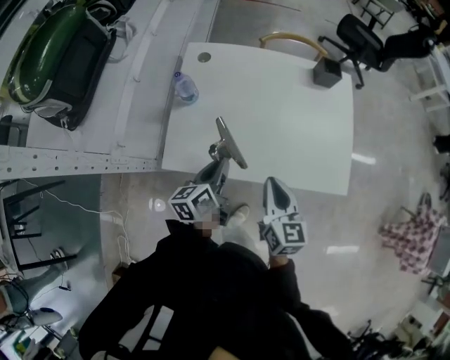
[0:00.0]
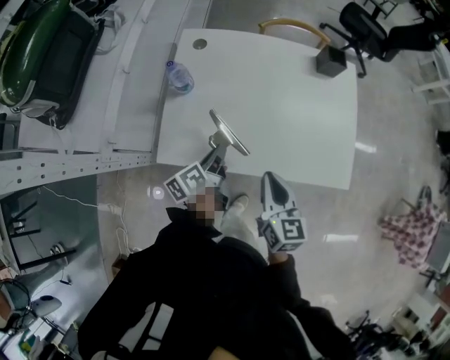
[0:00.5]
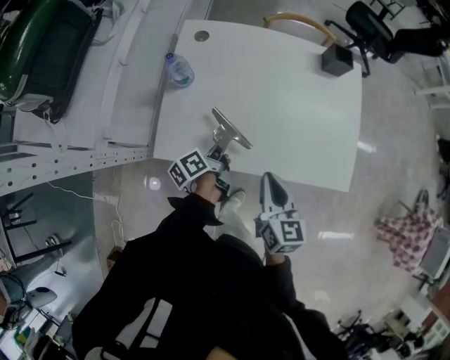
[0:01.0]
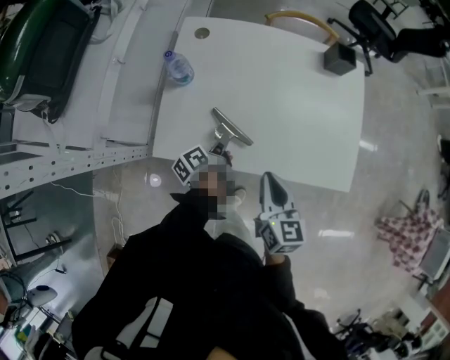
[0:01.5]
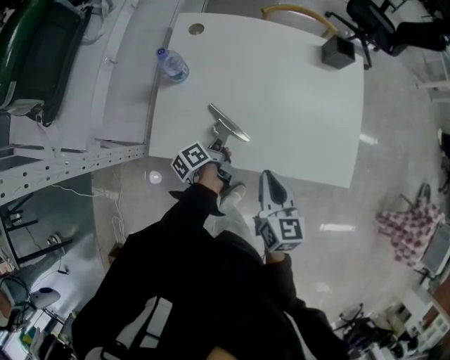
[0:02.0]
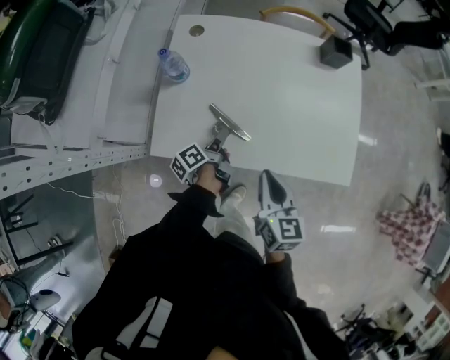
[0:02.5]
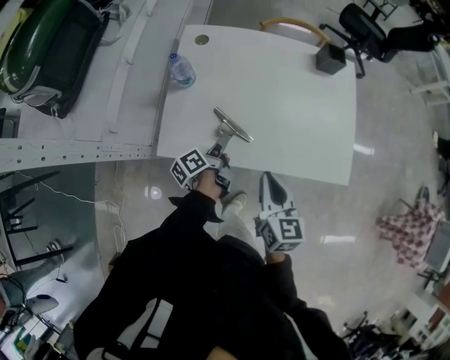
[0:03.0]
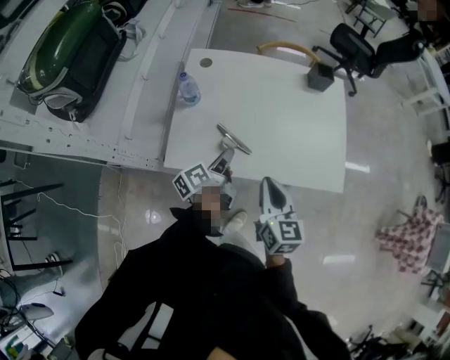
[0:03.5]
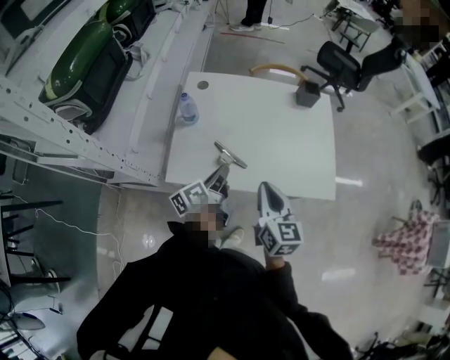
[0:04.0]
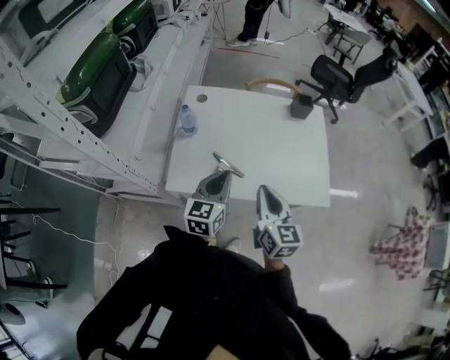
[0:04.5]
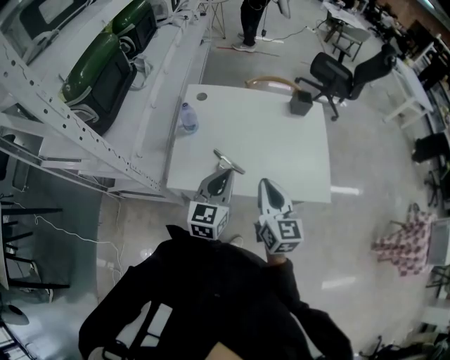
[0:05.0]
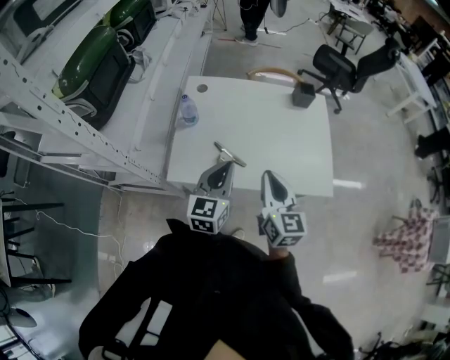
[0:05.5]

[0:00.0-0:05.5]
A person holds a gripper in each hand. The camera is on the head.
0:00.0 to 0:02.0: The left gripper heads downward, covering some 15 cm, and turns by about 40 degrees.
0:02.0 to 0:03.5: The right gripper is displaced upward by some 5 cm. The left gripper moves upward, roughly 15 cm, and opens up.
0:03.5 to 0:05.5: The right gripper goes some 10 cm upward; the left gripper shifts about 15 cm upward, rolls clockwise, seen from behind, by about 70 degrees, and closes its fingers.

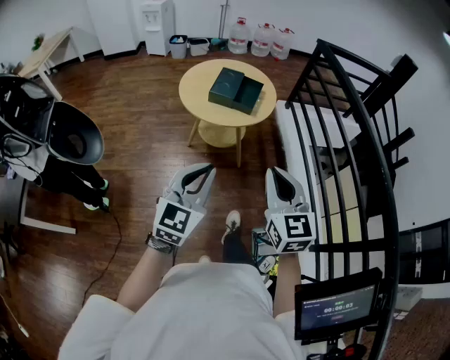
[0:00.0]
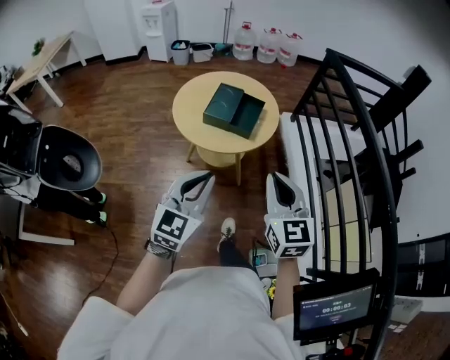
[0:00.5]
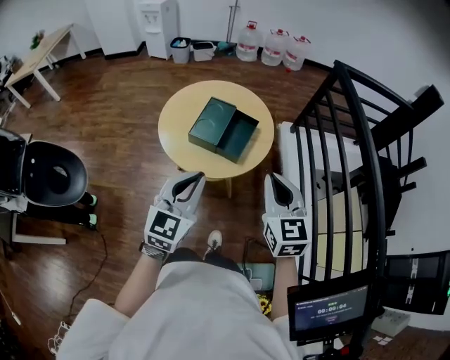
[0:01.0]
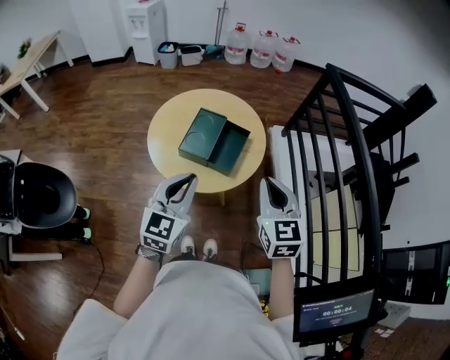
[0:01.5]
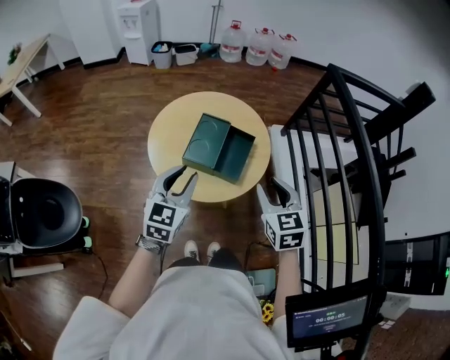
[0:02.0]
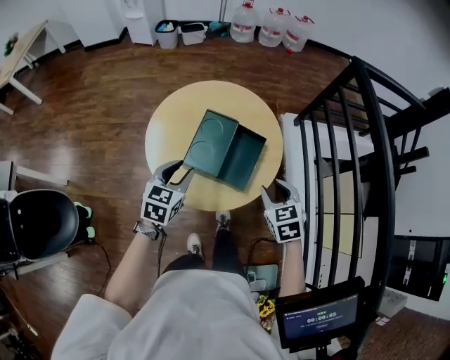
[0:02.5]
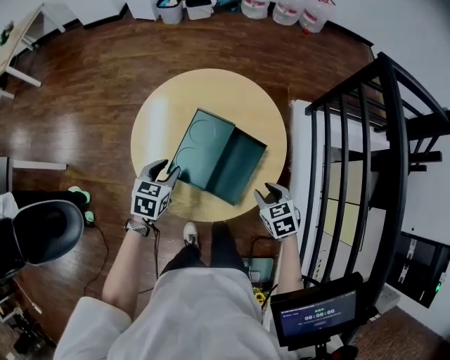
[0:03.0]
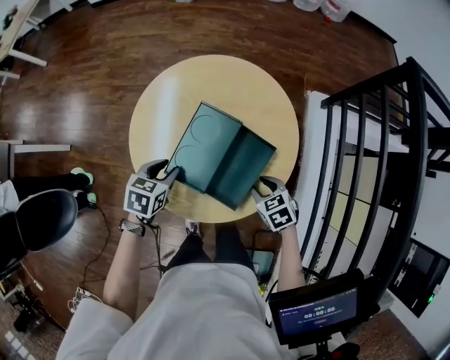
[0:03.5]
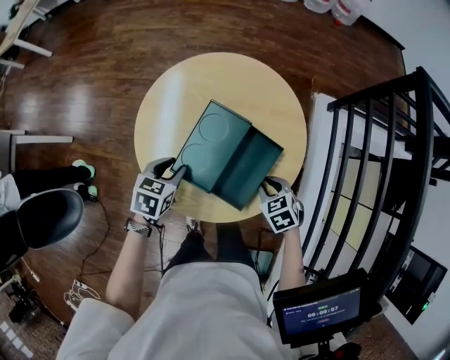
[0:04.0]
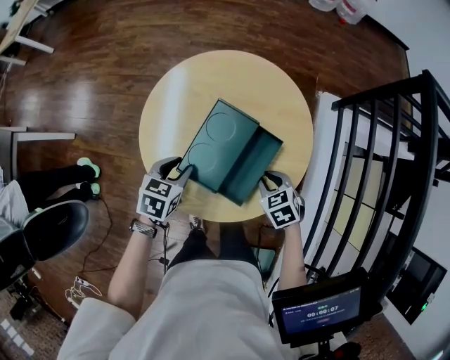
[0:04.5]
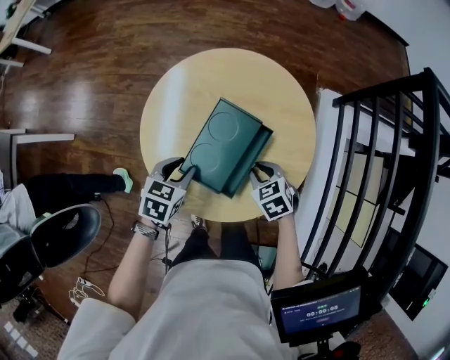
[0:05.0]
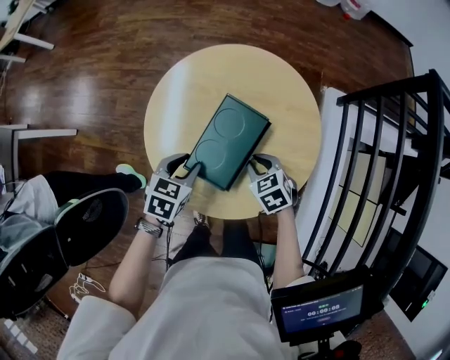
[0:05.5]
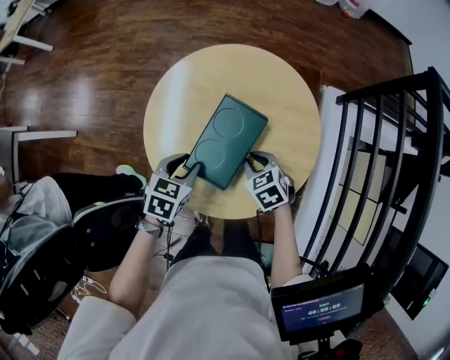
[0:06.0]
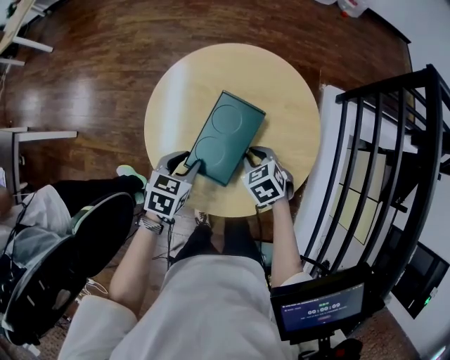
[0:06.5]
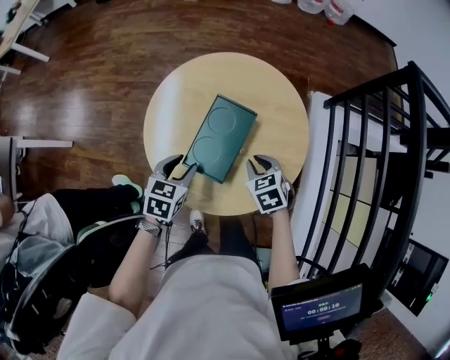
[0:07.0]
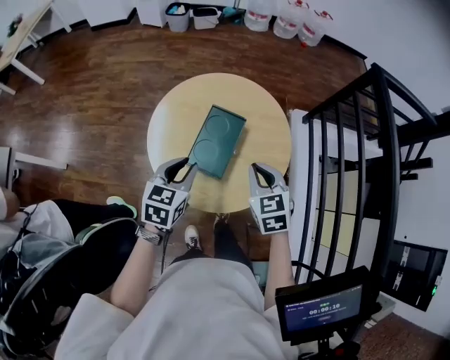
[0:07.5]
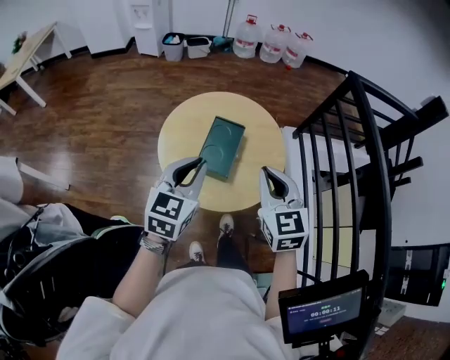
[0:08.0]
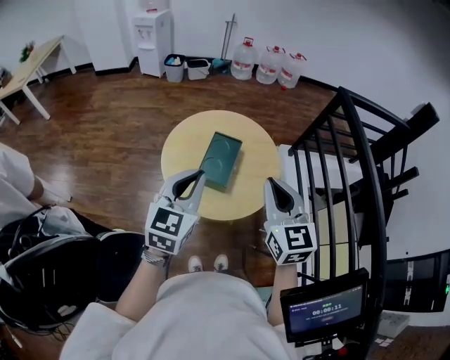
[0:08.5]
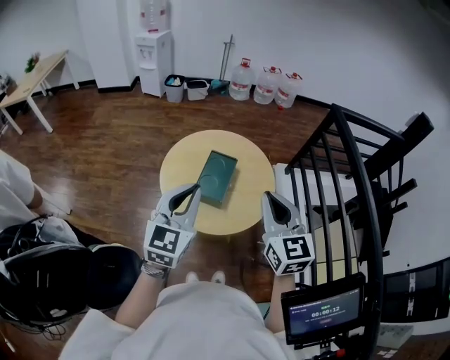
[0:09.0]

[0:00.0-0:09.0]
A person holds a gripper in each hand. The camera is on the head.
0:00.0 to 0:02.0: Both grippers travel together forward, roughly 35 cm. The left gripper opens, while the right gripper opens.
0:02.0 to 0:04.5: Both grippers travel together downward and forward, about 25 cm. The left gripper points its fingers some 40 degrees further downward; the right gripper points its fingers roughly 30 degrees further downward.
0:04.5 to 0:07.0: The right gripper ends up some 5 cm from where it was.
0:07.0 to 0:09.0: The grippers both shift upward by roughly 35 cm. The left gripper angles its fingers upward, by roughly 40 degrees, and closes up; the right gripper tips its fingers upward by about 50 degrees.

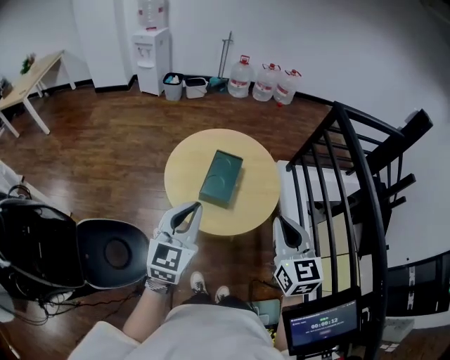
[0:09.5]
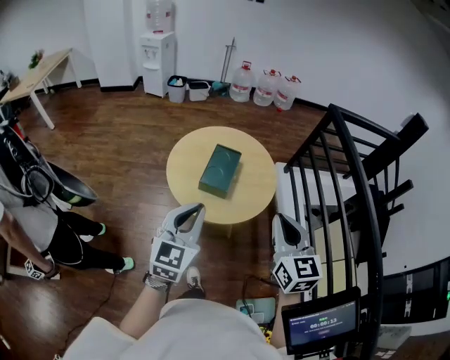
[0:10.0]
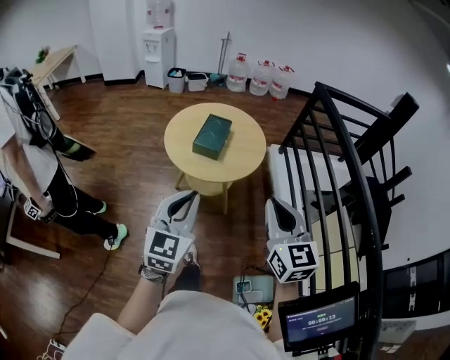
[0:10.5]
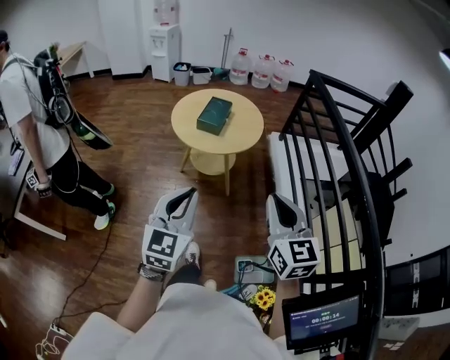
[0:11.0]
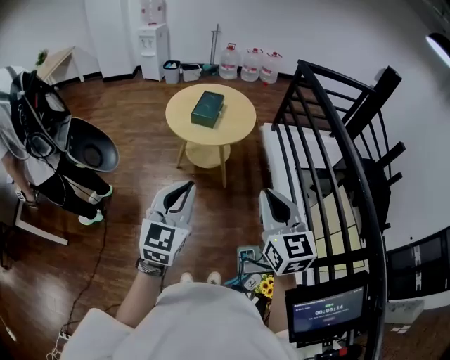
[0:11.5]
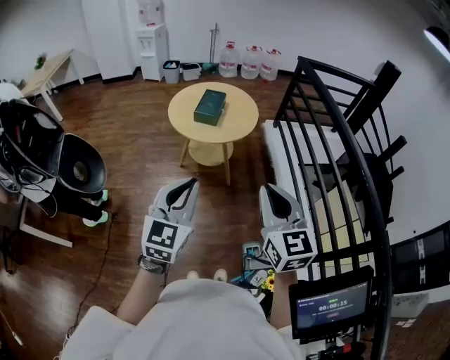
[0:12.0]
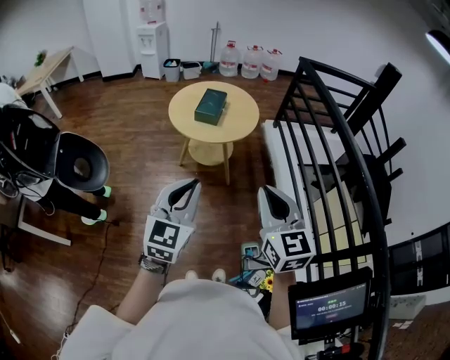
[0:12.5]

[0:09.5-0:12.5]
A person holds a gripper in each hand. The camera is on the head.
0:09.5 to 0:11.0: Both grippers move backward, some 30 cm.
0:11.0 to 0:12.5: The right gripper changes place by roughly 5 cm.

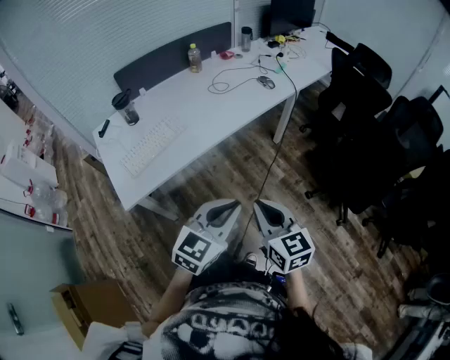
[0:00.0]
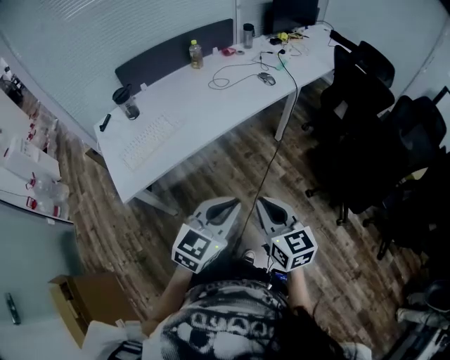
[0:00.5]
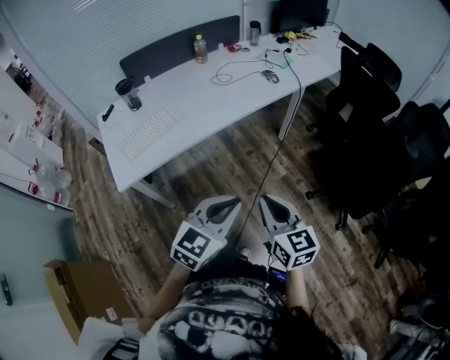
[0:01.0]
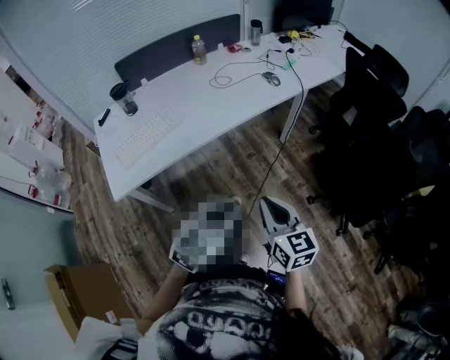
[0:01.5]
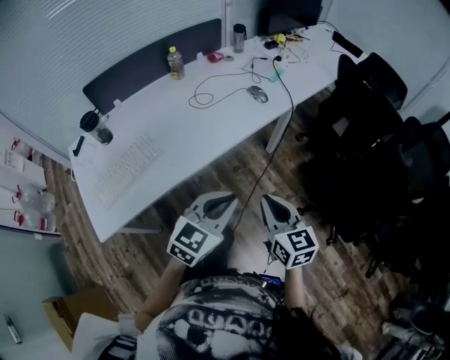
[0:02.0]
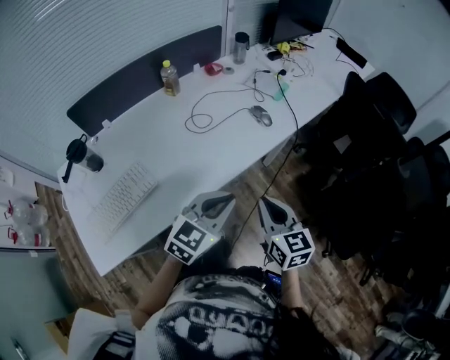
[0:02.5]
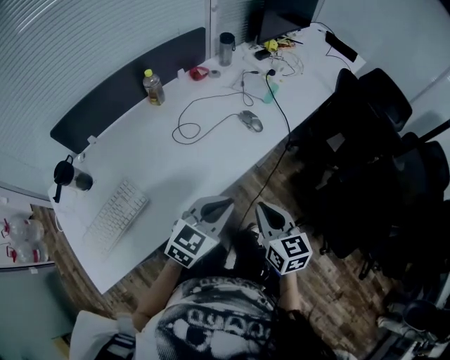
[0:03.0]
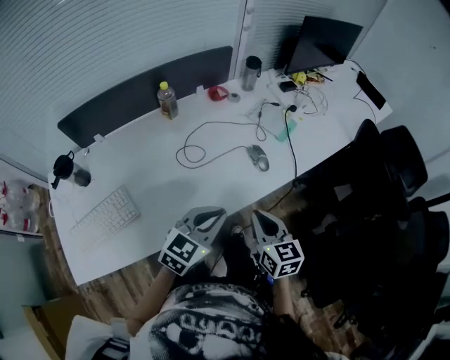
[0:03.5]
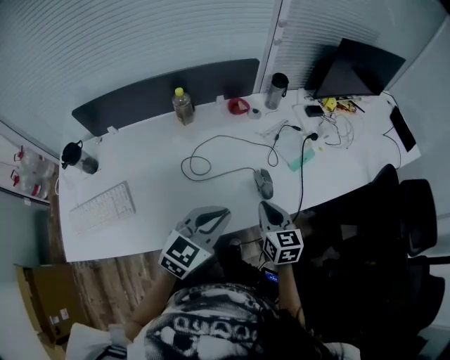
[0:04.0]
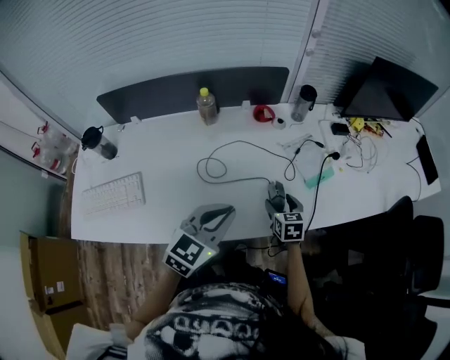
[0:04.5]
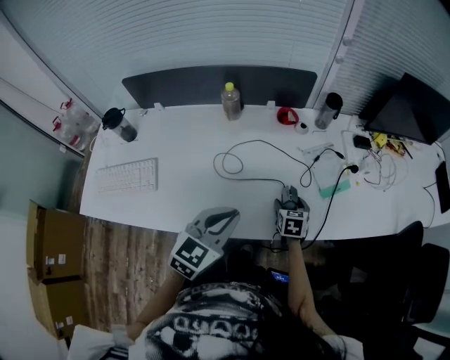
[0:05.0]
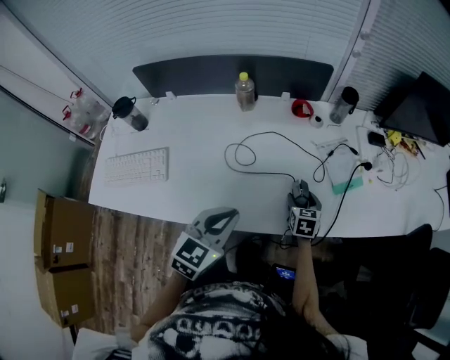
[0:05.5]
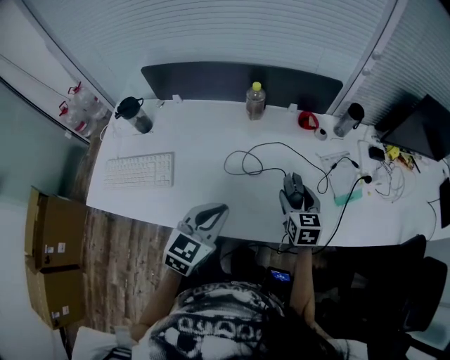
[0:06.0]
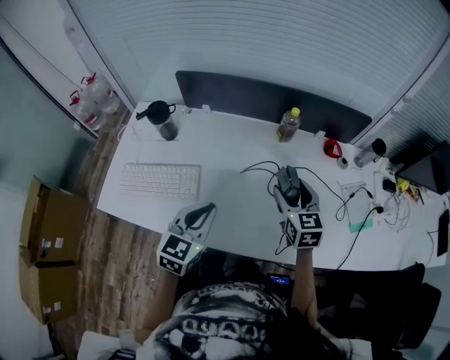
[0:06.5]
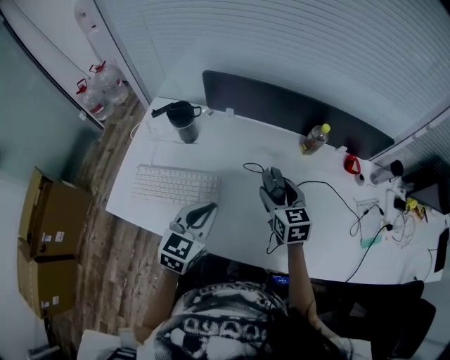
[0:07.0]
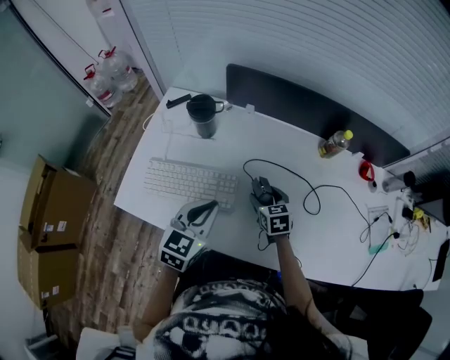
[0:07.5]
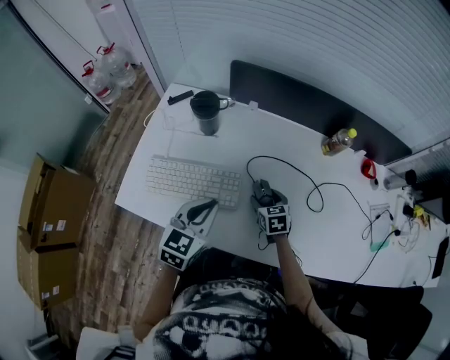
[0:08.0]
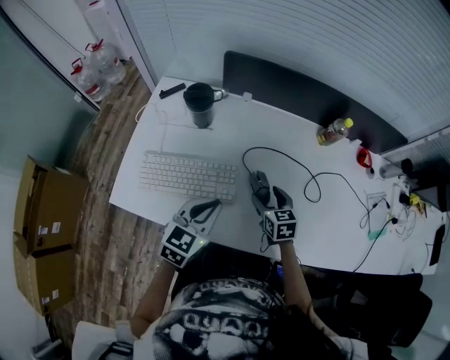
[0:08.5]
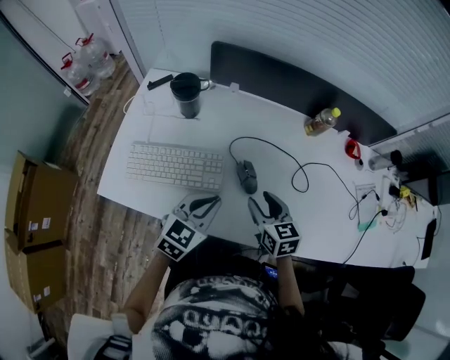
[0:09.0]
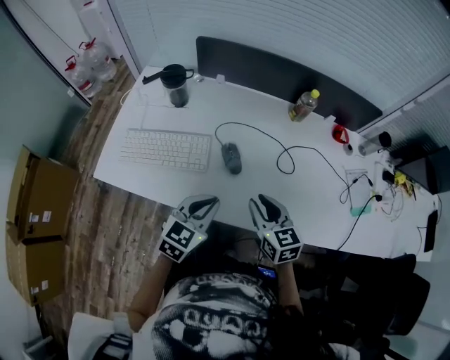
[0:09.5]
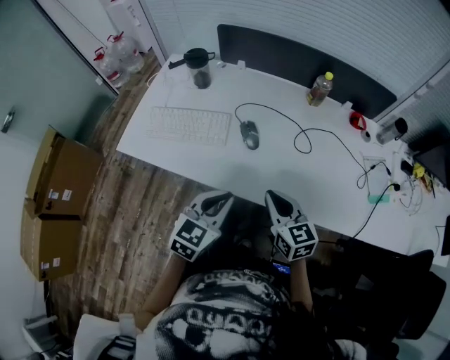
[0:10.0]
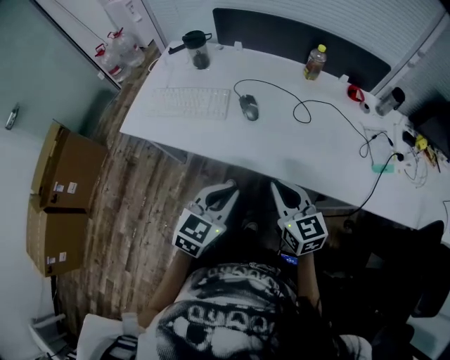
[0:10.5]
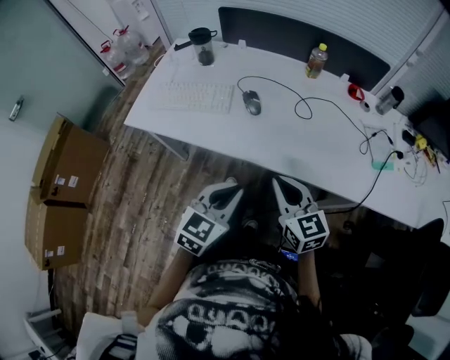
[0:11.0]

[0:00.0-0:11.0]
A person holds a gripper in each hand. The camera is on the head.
0:00.0 to 0:02.0: The right gripper is displaced forward and to the right by about 25 cm, while the left gripper travels forward by some 20 cm.
0:02.0 to 0:03.5: Both grippers travel together forward, about 30 cm.
0:03.5 to 0:05.5: The left gripper travels forward by approximately 5 cm, and changes its angle by approximately 40 degrees, while the right gripper travels forward and downward by some 30 cm, turns by about 30 degrees, and opens up.
0:05.5 to 0:07.5: The right gripper goes upward and returns, roughly 20 cm each way, and swivels about 30 degrees, while the left gripper moves roughly 40 cm, and swivels roughly 20 degrees.
0:07.5 to 0:09.0: The left gripper moves some 5 cm. Meanwhile the right gripper goes approximately 10 cm backward and upward.
0:09.0 to 0:11.0: The left gripper travels backward and to the right by approximately 30 cm. Meanwhile the right gripper moves backward, roughly 25 cm, rotates approximately 20 degrees, and closes its fingers.
